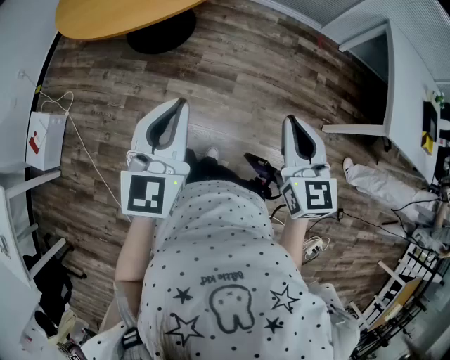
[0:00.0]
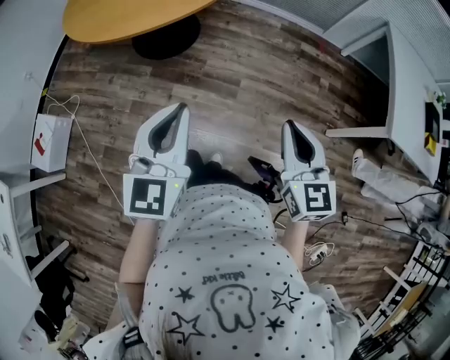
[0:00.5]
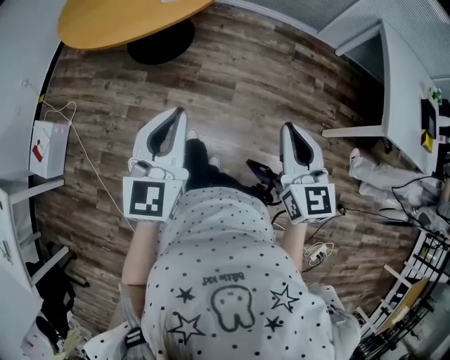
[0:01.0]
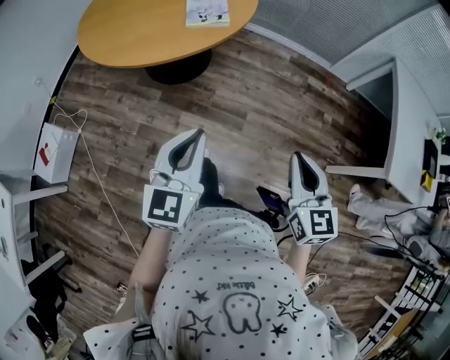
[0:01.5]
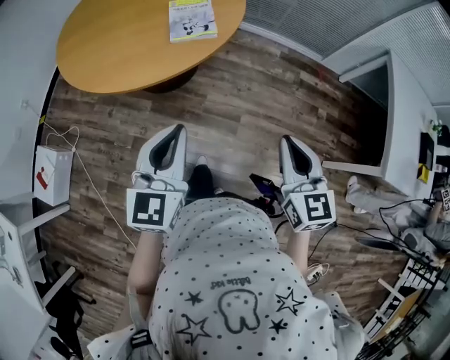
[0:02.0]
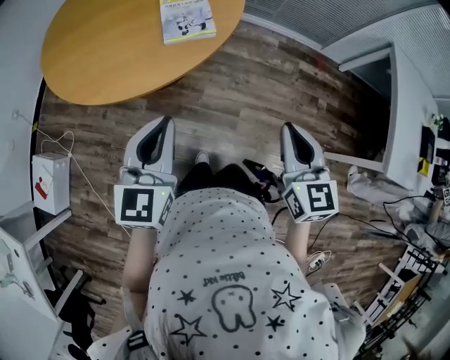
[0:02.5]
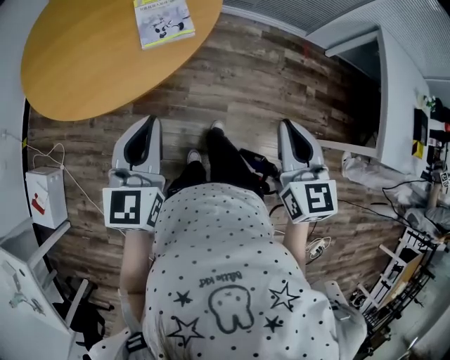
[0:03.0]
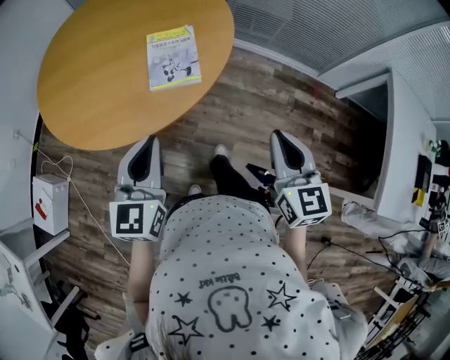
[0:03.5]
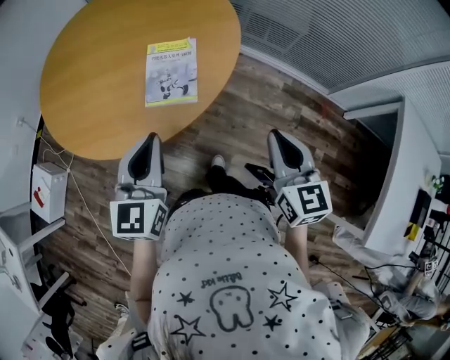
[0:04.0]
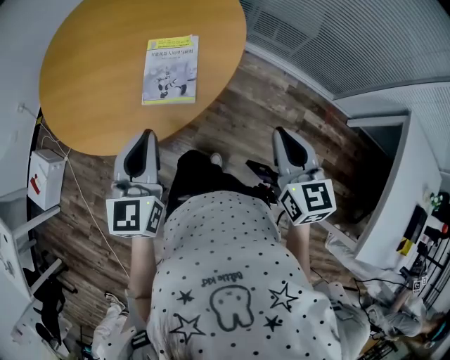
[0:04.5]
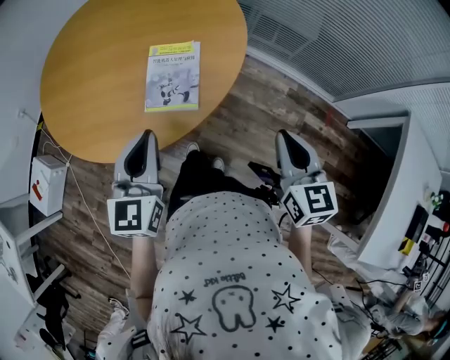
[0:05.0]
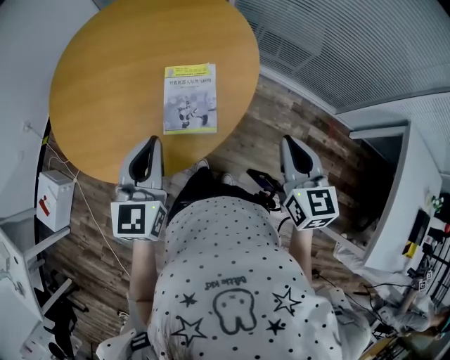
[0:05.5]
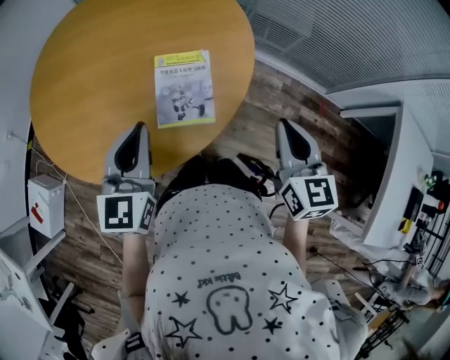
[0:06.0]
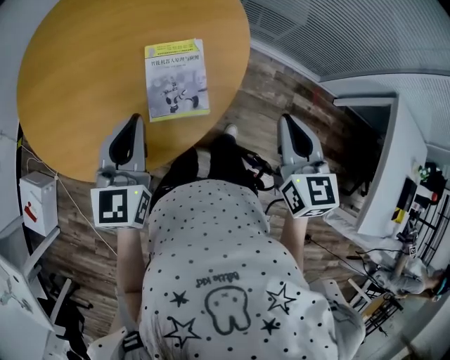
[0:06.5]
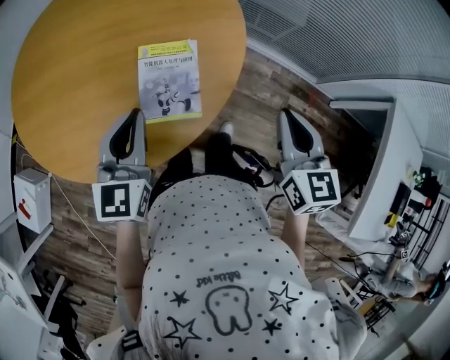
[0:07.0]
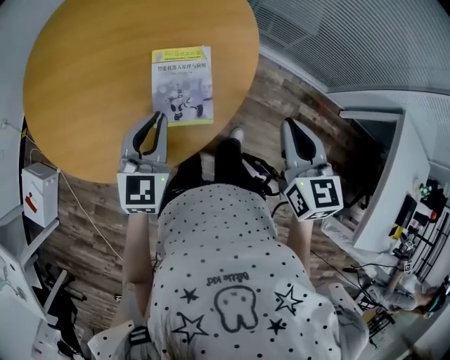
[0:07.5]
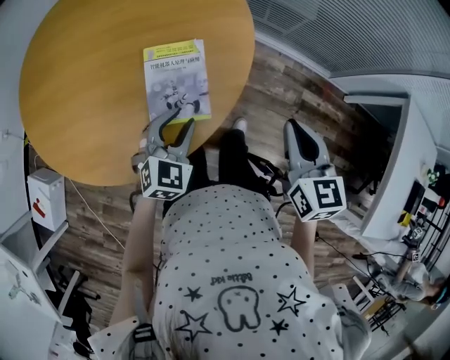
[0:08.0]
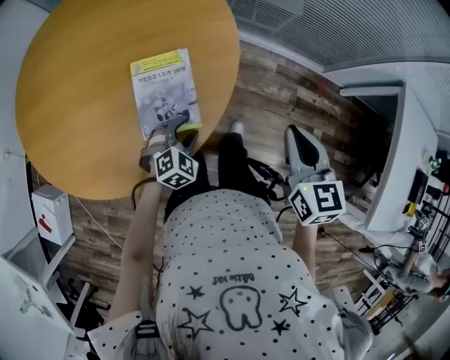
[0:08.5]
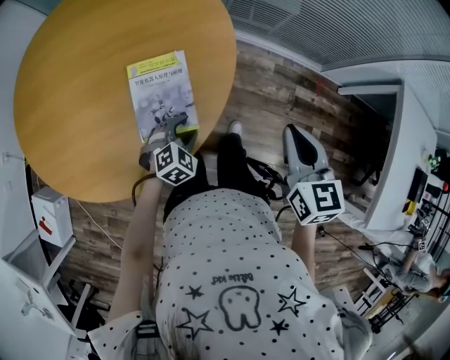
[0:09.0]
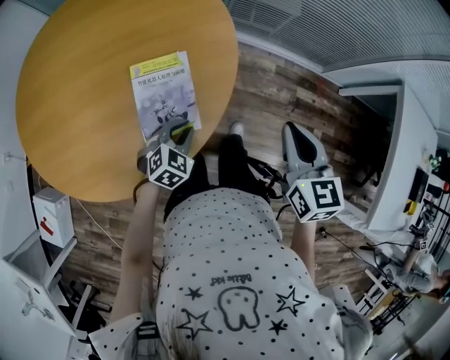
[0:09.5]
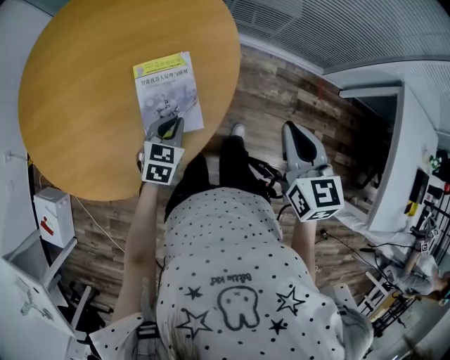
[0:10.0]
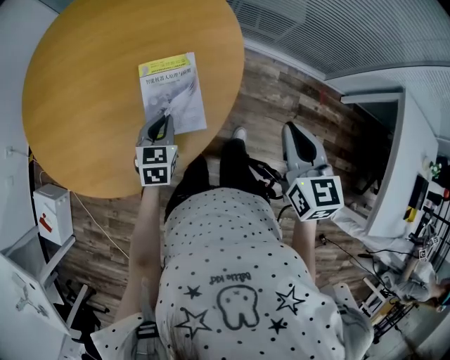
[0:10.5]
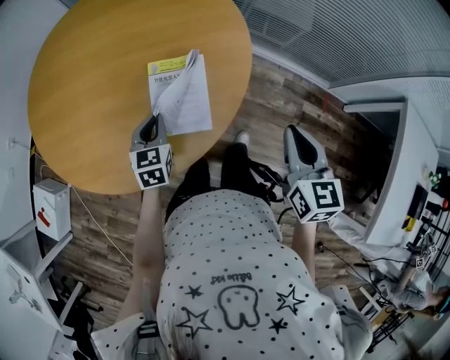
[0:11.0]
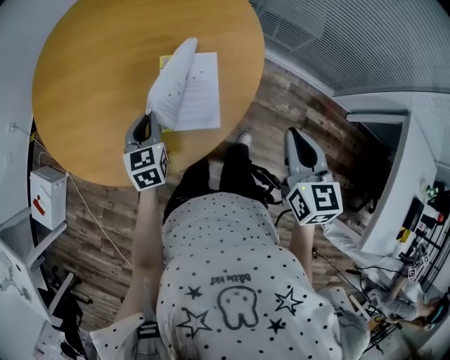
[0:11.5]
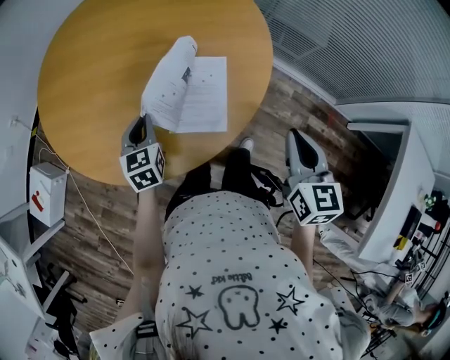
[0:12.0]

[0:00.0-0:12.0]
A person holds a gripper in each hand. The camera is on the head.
0:00.0 to 0:02.0: Both grippers move forward, about 20 cm.
0:02.0 to 0:04.0: The two grippers go roughly 30 cm forward.
0:04.0 to 0:06.0: The grippers both shift forward and to the left by about 15 cm.
0:06.0 to 0:08.0: The left gripper moves downward and to the right, about 20 cm, changes its angle by some 40 degrees, and opens its fingers. Meanwhile the right gripper moves about 5 cm.
0:08.0 to 0:10.0: The left gripper heads downward, covering approximately 5 cm, and closes.
0:10.0 to 0:12.0: The left gripper travels to the left by some 20 cm, and rotates approximately 40 degrees; the right gripper travels to the left by roughly 5 cm.

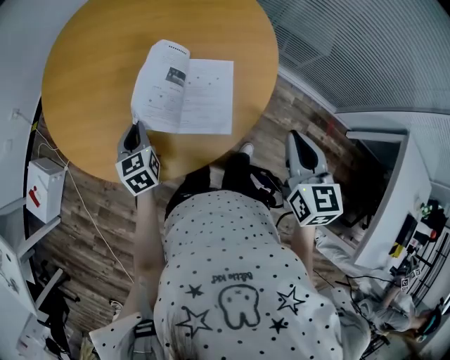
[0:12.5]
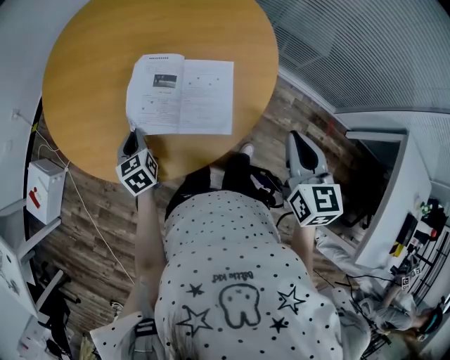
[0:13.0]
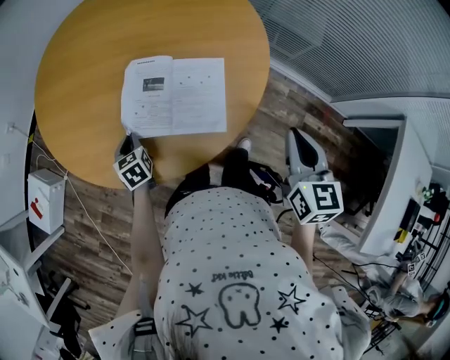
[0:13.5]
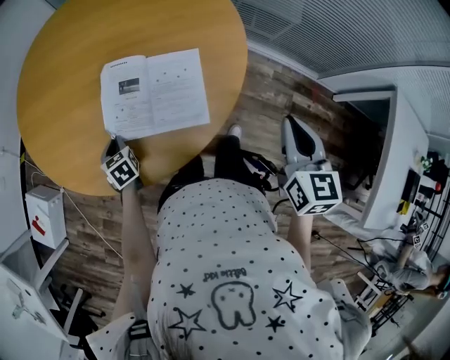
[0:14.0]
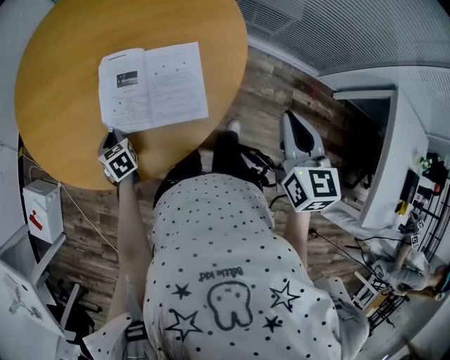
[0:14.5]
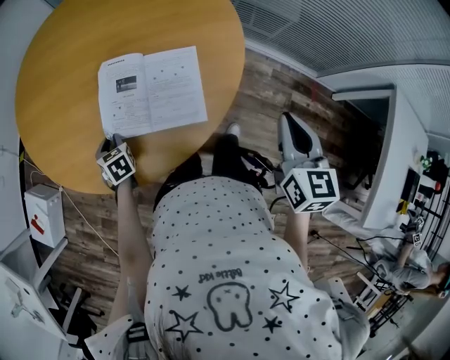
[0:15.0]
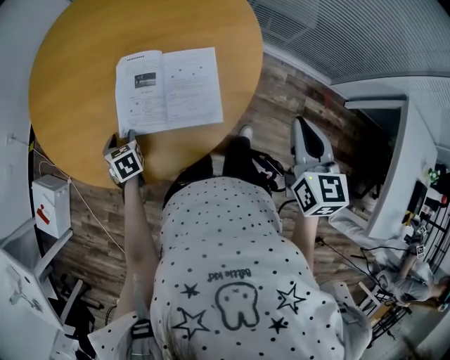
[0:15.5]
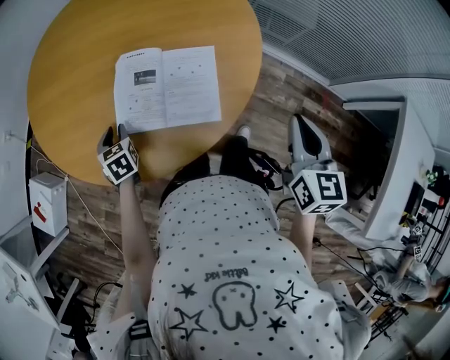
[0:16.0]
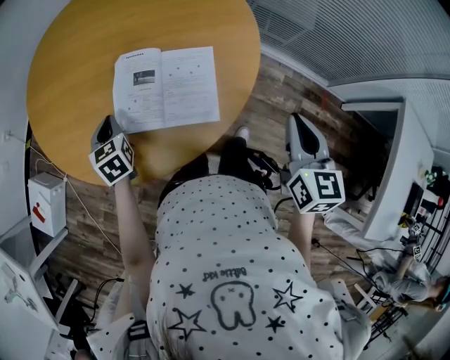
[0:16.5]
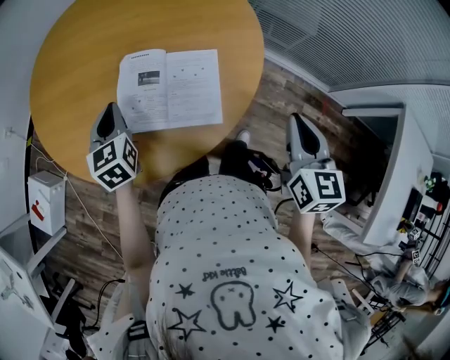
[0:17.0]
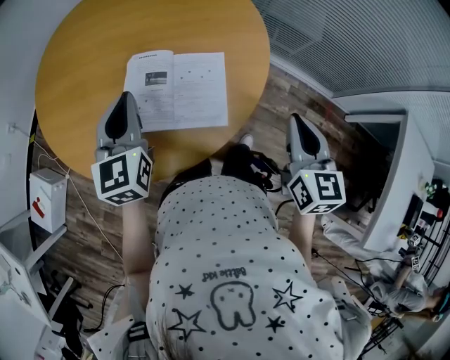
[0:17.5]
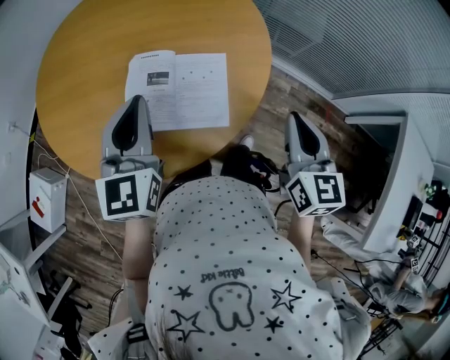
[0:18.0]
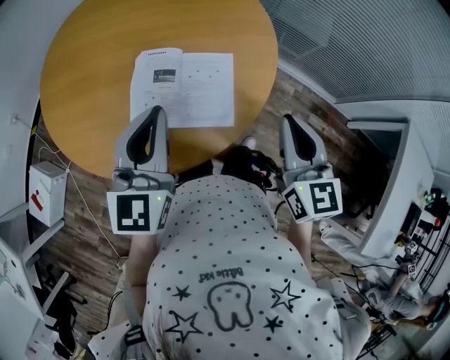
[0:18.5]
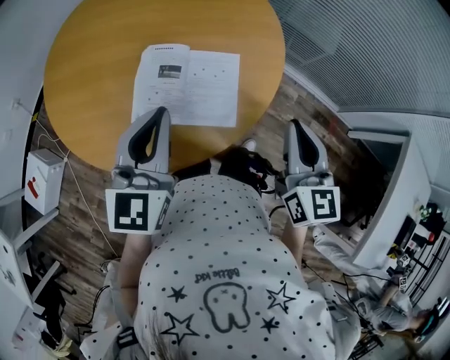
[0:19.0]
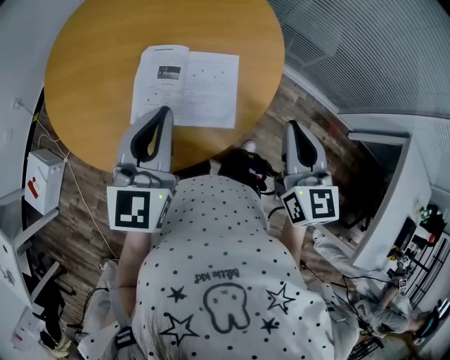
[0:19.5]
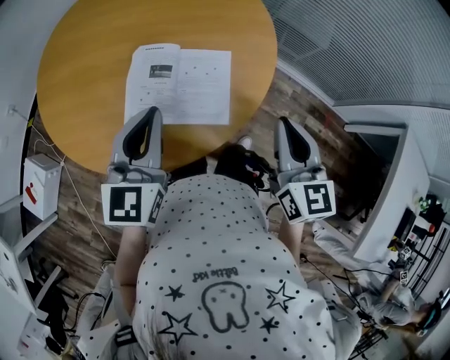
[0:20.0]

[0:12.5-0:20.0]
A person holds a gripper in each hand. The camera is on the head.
0:12.5 to 0:14.5: The left gripper moves downward, some 10 cm, and swivels about 20 degrees.
0:14.5 to 0:16.5: The left gripper goes some 10 cm upward, and opens, then closes once more.
0:16.5 to 0:18.0: The right gripper ends up about 5 cm from where it was. Meanwhile the left gripper goes some 25 cm upward and to the right, and points its fingers about 30 degrees further upward.
0:18.0 to 0:20.0: The grippers make only small movements.

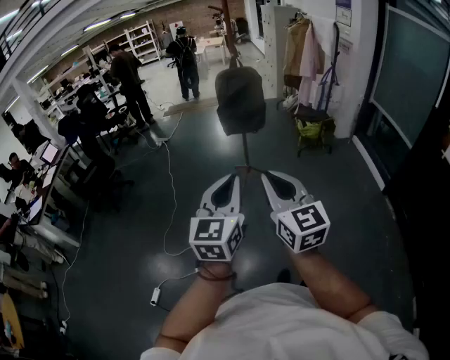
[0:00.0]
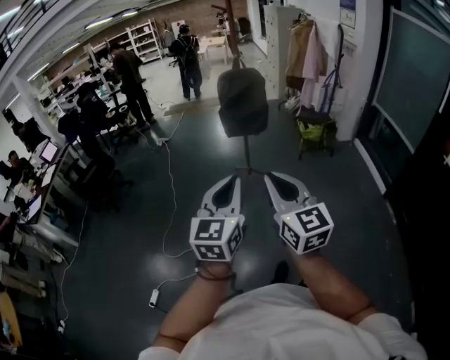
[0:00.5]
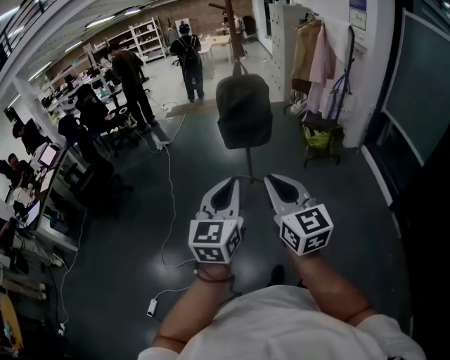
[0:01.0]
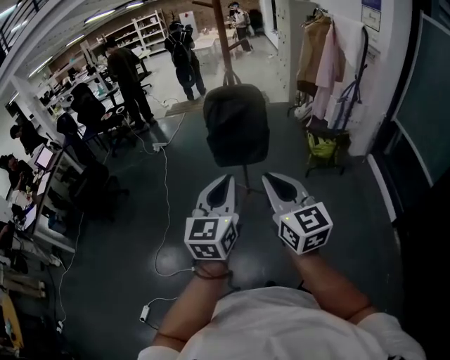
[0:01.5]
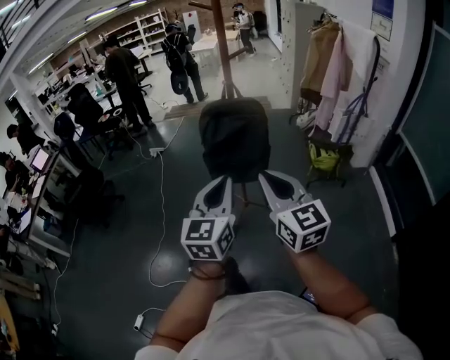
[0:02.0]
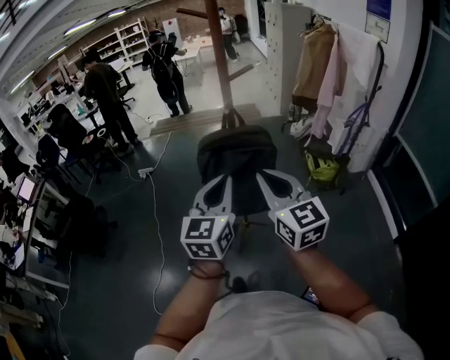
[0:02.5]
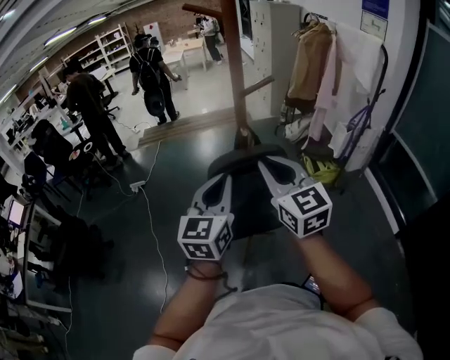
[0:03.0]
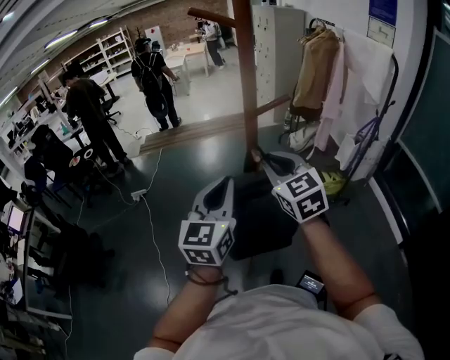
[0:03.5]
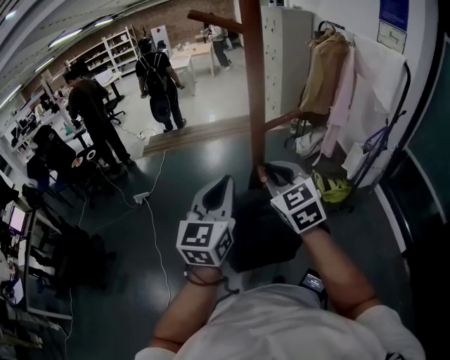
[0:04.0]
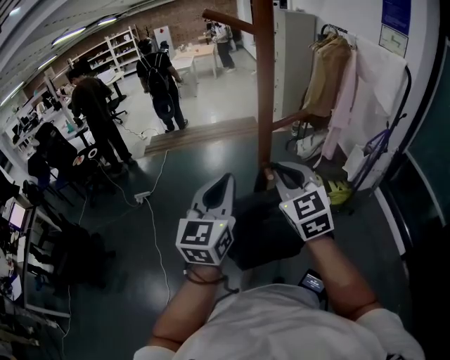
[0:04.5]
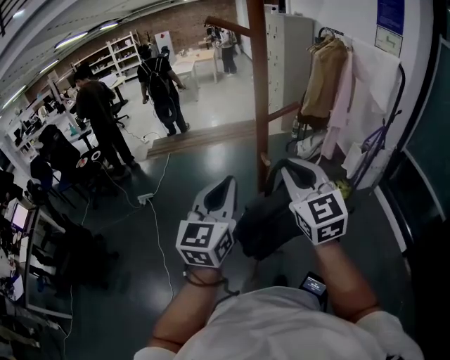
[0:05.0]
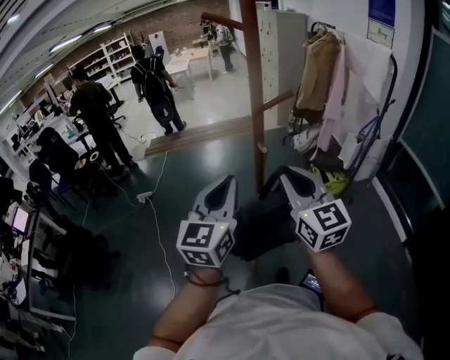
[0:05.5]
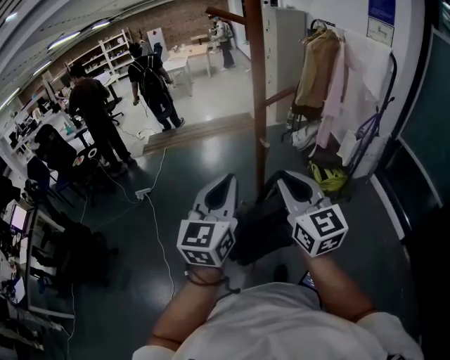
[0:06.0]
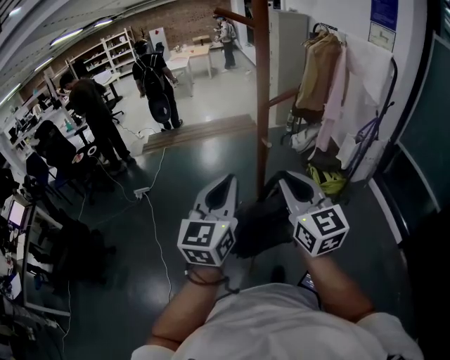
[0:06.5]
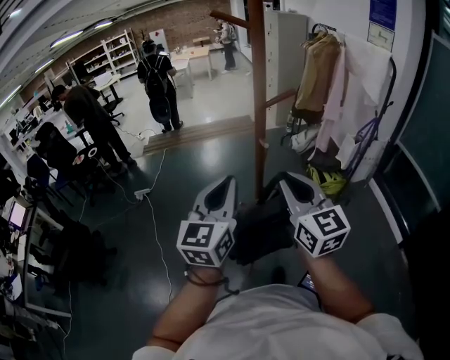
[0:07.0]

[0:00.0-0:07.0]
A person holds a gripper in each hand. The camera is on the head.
0:00.0 to 0:02.0: The two grippers travel together, forward, about 50 cm.
0:02.0 to 0:03.5: Both grippers are carried forward, about 40 cm. The right gripper rotates about 20 degrees.
0:03.5 to 0:05.0: The right gripper heads upward, covering approximately 5 cm.
0:05.0 to 0:07.0: The two grippers go some 5 cm backward.
